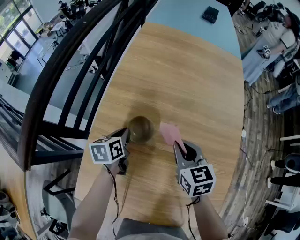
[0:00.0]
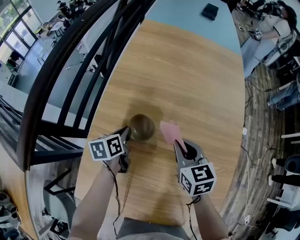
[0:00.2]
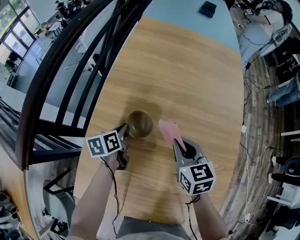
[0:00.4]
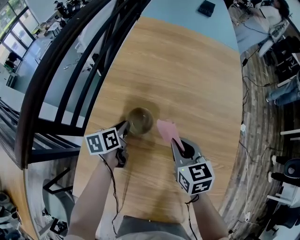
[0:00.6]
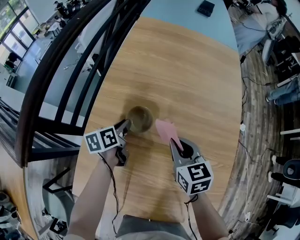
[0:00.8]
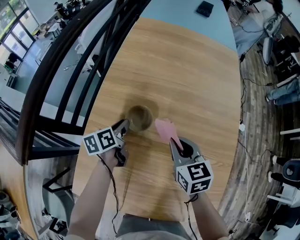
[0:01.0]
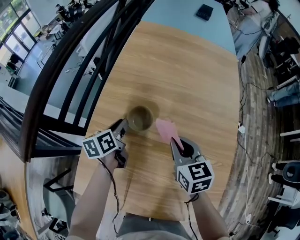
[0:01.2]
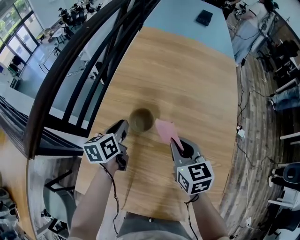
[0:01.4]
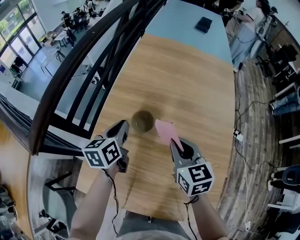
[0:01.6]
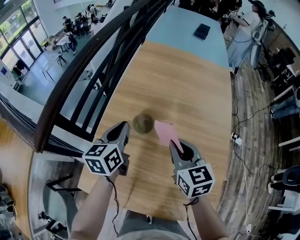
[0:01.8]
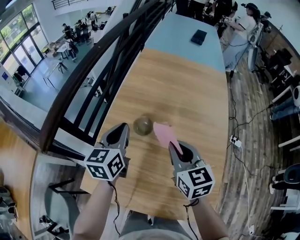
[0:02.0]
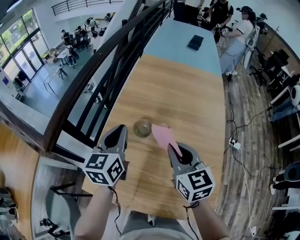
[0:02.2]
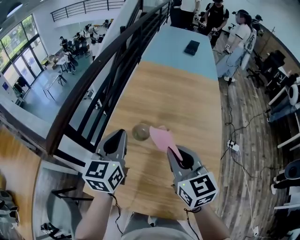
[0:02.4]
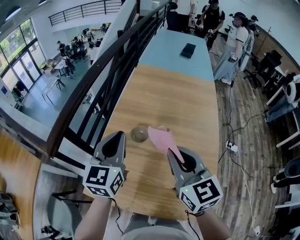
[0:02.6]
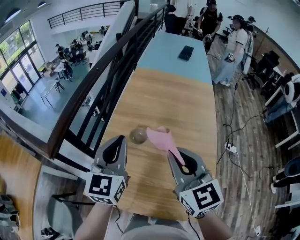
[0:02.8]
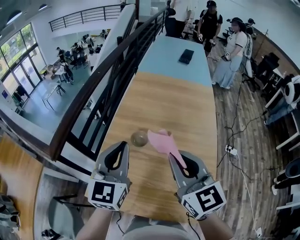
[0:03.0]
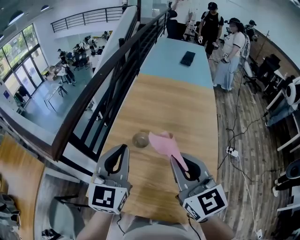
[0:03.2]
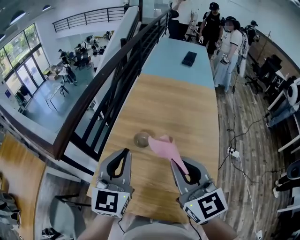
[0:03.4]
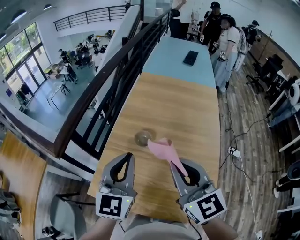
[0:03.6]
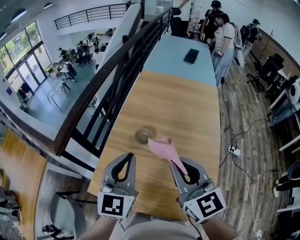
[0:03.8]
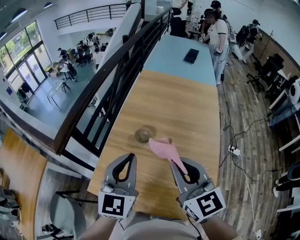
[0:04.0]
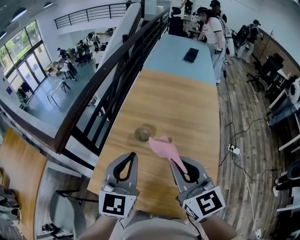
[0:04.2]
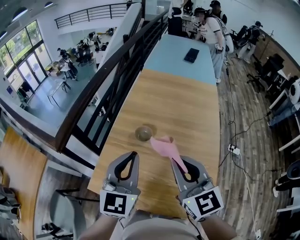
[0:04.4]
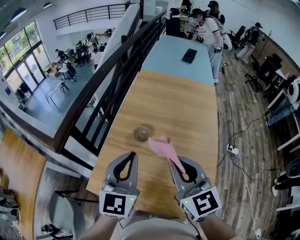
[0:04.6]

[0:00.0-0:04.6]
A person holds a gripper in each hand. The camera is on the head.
0:00.0 to 0:01.6: The right gripper moves upward and backward, roughly 10 cm. Meanwhile the left gripper heads upward, covering approximately 15 cm.
0:01.6 to 0:03.0: The grippers both shift upward and backward by about 30 cm. The left gripper changes its angle by roughly 40 degrees. Meanwhile the right gripper rotates some 20 degrees.
0:03.0 to 0:04.6: The left gripper travels backward by approximately 5 cm.

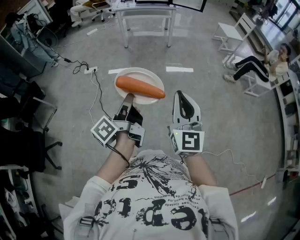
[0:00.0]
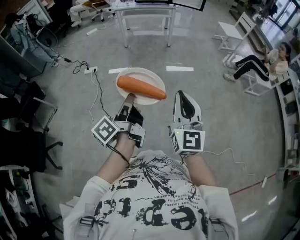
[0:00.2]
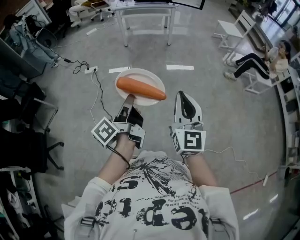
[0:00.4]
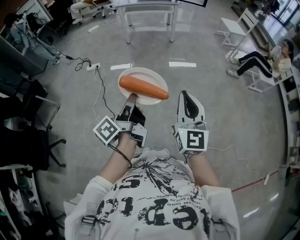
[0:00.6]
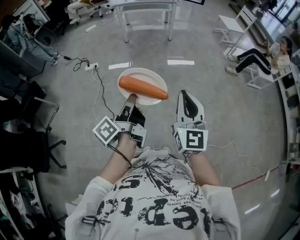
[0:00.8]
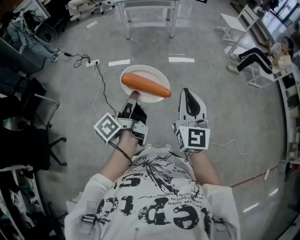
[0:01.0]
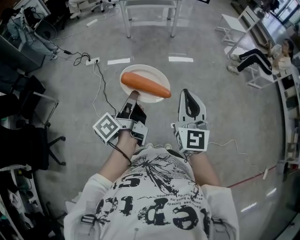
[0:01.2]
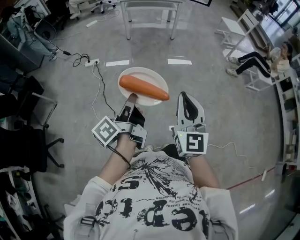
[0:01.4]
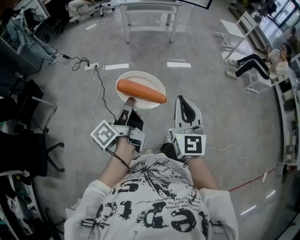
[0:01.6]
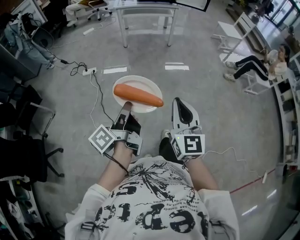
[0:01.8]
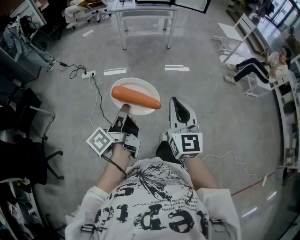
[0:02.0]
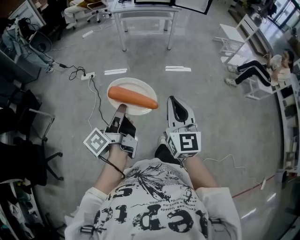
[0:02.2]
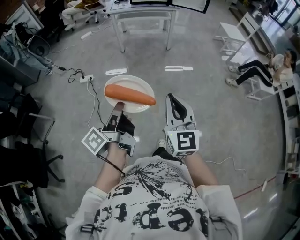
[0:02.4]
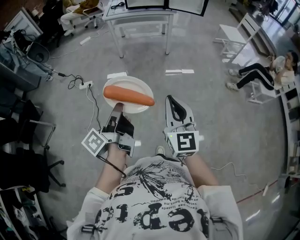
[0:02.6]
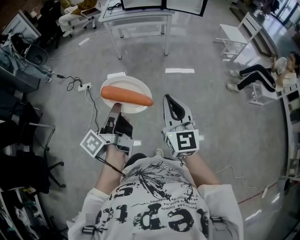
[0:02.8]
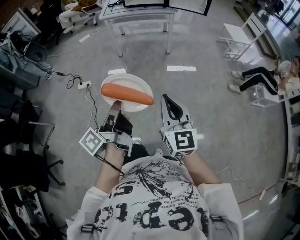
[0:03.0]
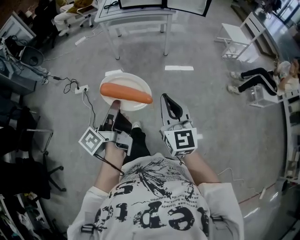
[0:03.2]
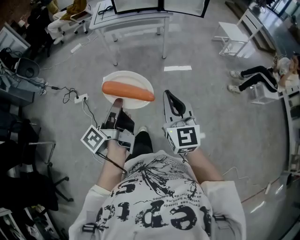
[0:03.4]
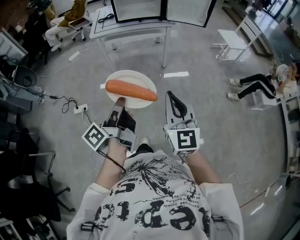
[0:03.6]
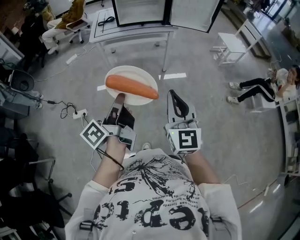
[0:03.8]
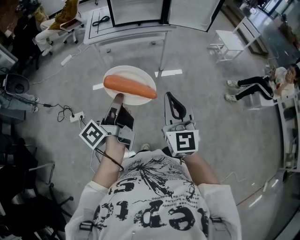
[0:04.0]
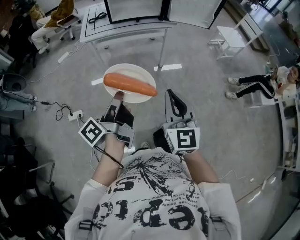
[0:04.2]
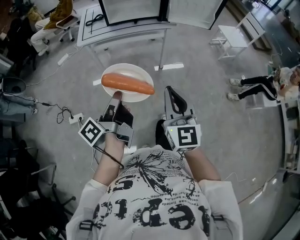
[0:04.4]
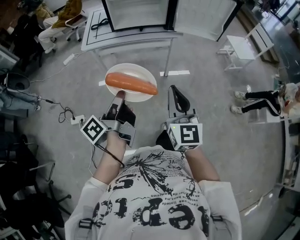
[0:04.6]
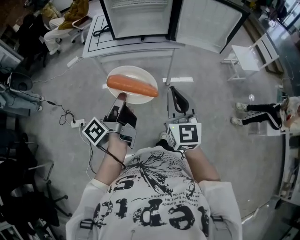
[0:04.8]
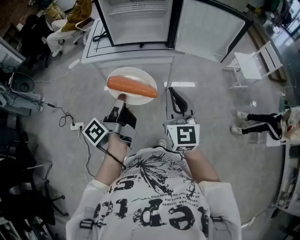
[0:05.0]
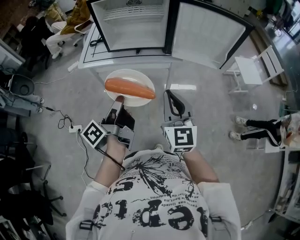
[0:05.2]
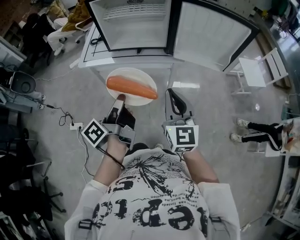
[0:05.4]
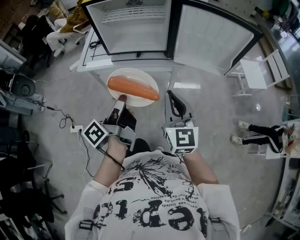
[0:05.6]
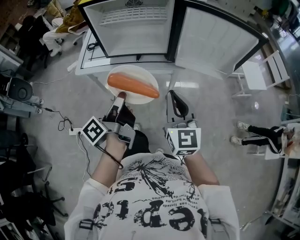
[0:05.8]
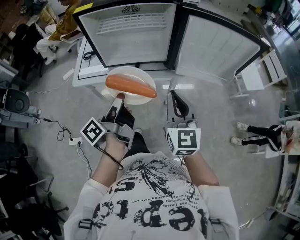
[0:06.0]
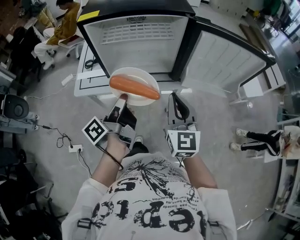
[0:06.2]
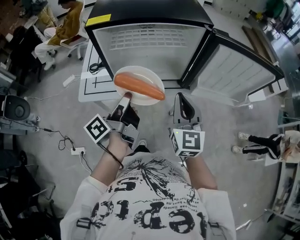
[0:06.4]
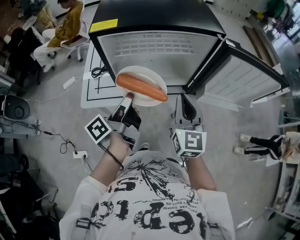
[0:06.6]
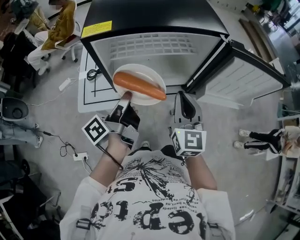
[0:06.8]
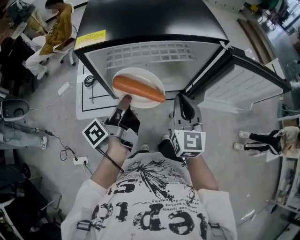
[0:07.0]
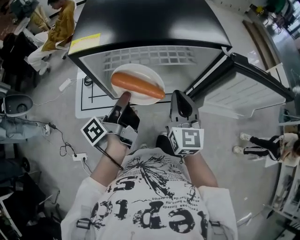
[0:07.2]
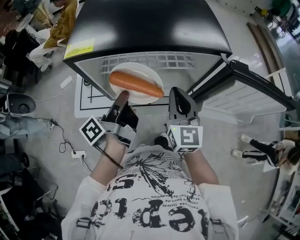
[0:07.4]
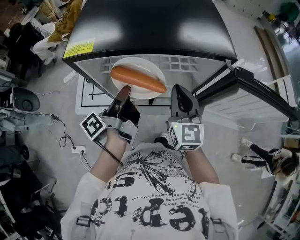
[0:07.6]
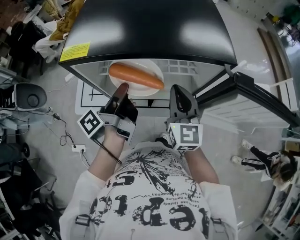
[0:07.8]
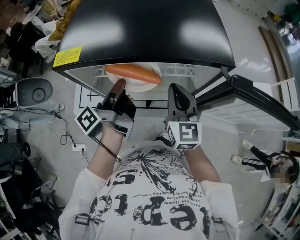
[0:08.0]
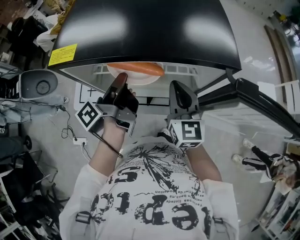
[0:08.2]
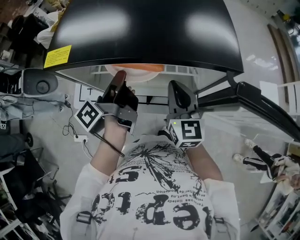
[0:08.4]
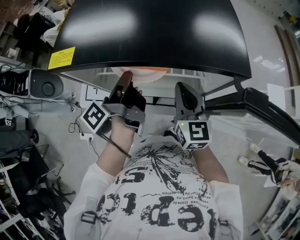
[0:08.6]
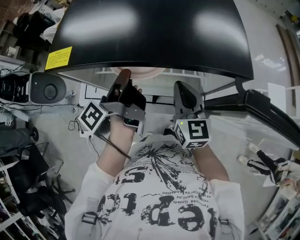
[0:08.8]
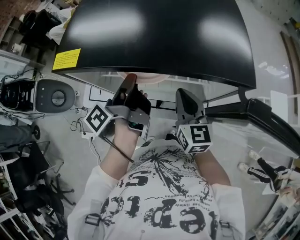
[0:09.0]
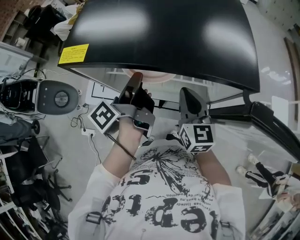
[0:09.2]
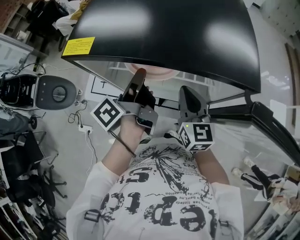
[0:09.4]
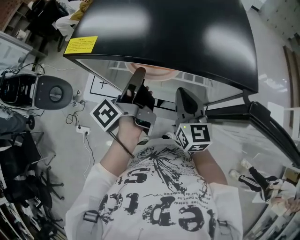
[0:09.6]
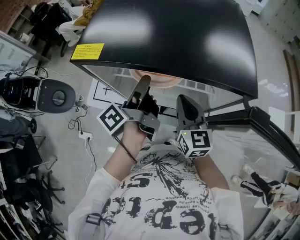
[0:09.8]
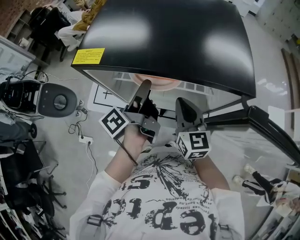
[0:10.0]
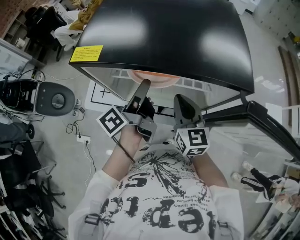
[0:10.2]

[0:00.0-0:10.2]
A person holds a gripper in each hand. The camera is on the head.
0:00.0 to 0:01.4: The right gripper shifts by about 10 cm.
0:01.4 to 0:03.0: The right gripper moves some 35 cm.
0:03.0 to 0:04.4: The right gripper shifts by about 40 cm.
0:04.4 to 0:05.8: The right gripper ends up roughly 35 cm from where it was.
0:05.8 to 0:07.2: The right gripper changes place by about 30 cm.
0:07.2 to 0:08.8: The right gripper changes place by roughly 10 cm.

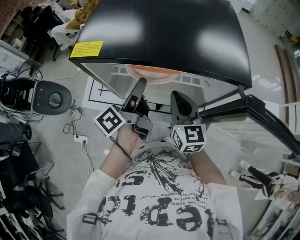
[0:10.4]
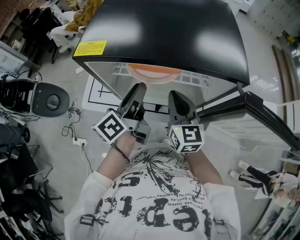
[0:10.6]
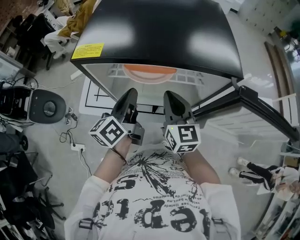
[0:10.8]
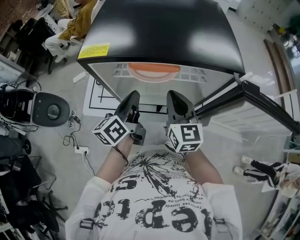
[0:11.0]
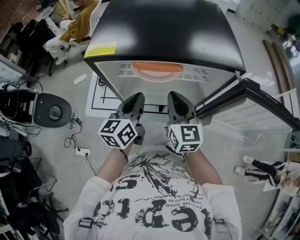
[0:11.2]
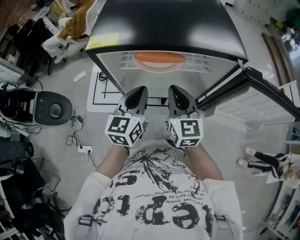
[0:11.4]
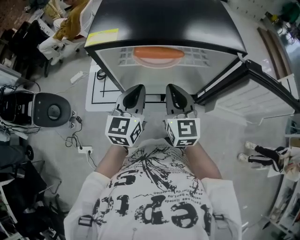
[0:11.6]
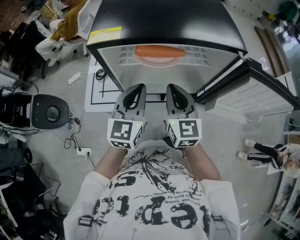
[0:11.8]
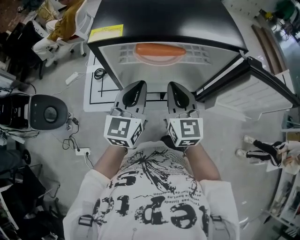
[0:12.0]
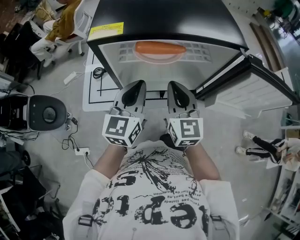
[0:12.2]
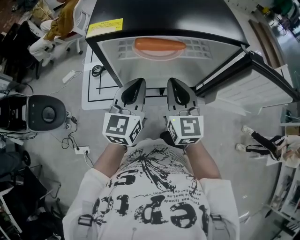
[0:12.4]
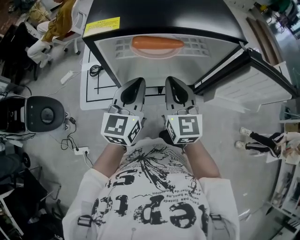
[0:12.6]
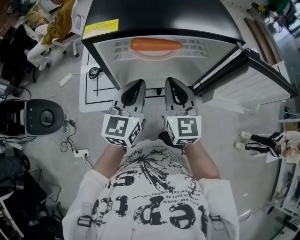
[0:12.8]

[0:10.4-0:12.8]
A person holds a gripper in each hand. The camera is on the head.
0:10.4 to 0:11.6: The right gripper shifts by approximately 5 cm.

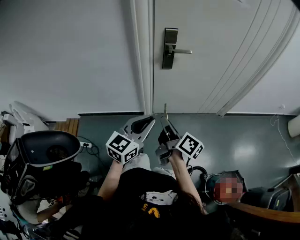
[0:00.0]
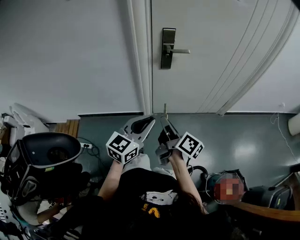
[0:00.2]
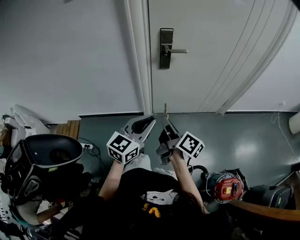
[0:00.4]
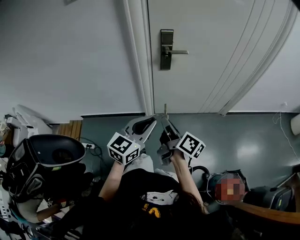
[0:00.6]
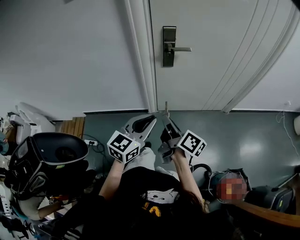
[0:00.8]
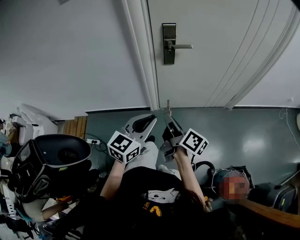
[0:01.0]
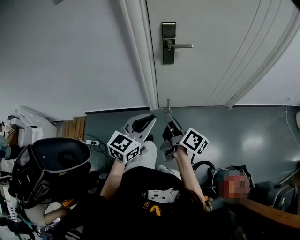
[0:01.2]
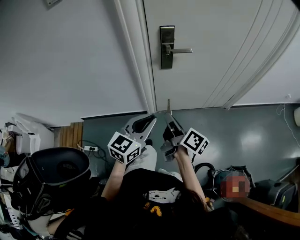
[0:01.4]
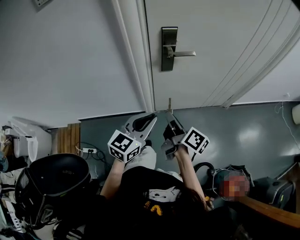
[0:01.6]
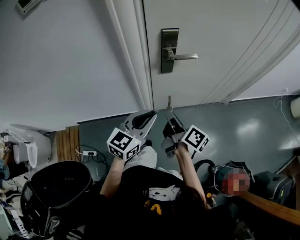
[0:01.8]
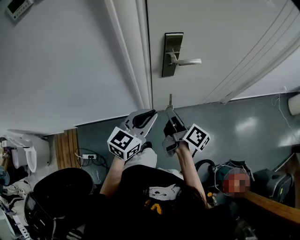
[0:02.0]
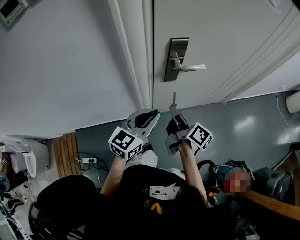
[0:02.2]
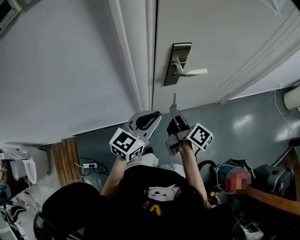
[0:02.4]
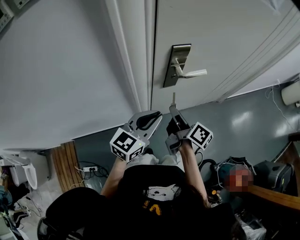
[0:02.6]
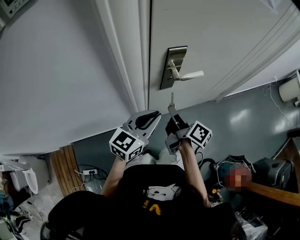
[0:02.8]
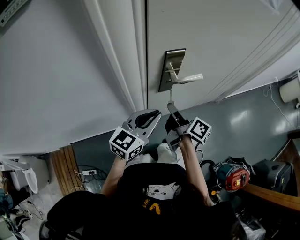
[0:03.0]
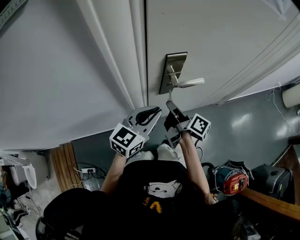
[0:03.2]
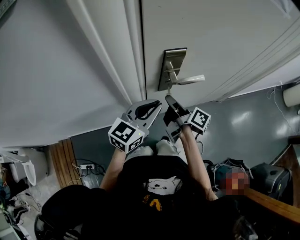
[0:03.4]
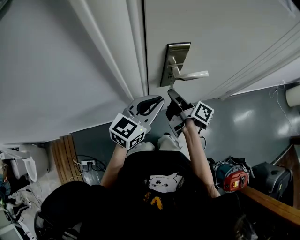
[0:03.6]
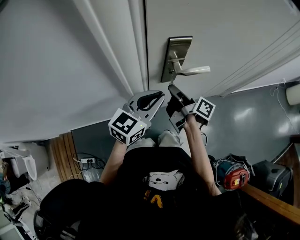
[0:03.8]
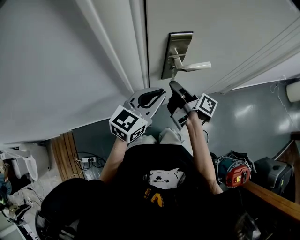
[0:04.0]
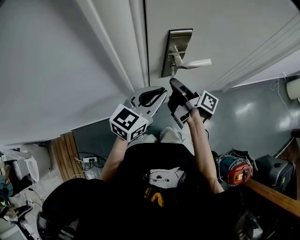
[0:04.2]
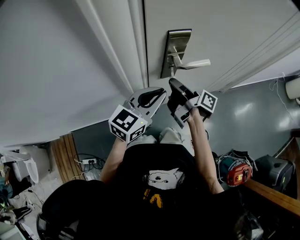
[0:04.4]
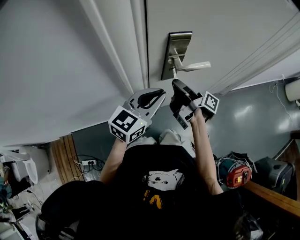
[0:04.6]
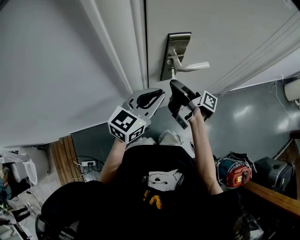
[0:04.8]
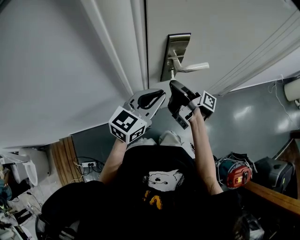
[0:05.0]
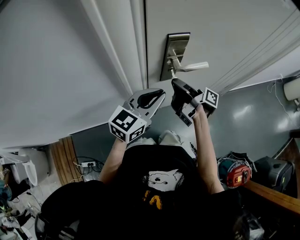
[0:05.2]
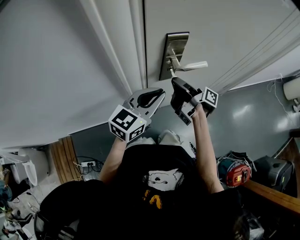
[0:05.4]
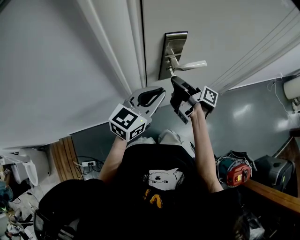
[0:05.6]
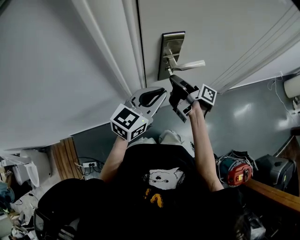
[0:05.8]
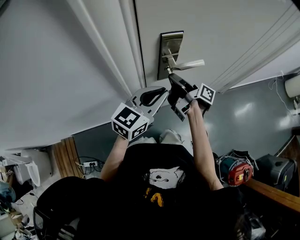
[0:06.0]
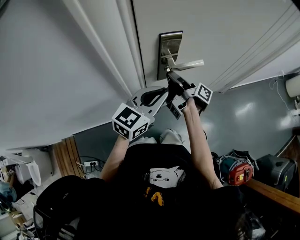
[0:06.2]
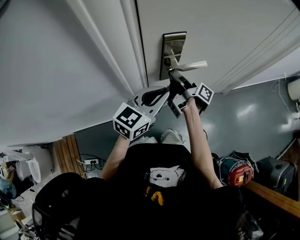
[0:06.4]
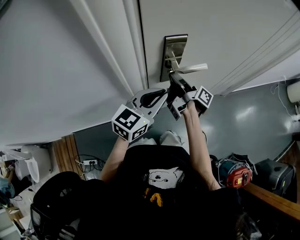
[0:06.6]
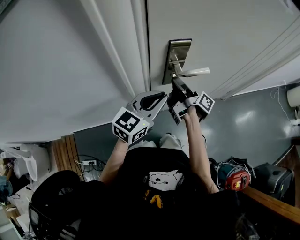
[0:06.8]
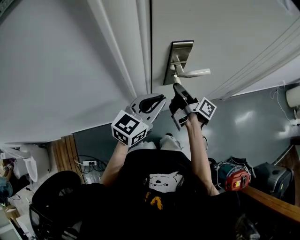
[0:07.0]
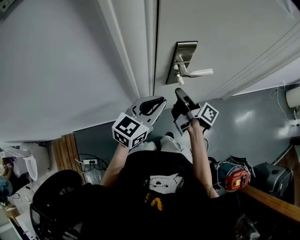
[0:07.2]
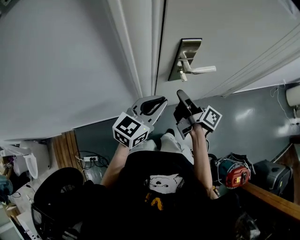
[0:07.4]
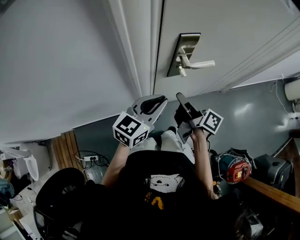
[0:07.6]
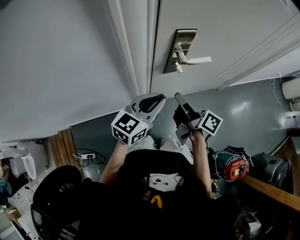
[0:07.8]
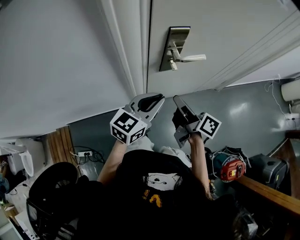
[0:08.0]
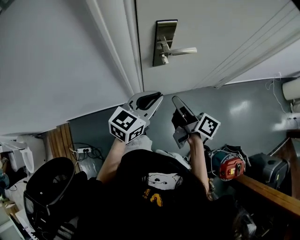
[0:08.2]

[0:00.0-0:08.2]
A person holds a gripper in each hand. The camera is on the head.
0:00.0 to 0:01.6: The left gripper changes place by some 10 cm.
0:01.6 to 0:03.2: The left gripper shifts by about 20 cm.
0:06.6 to 0:08.2: The left gripper ends up some 10 cm from where it was.
